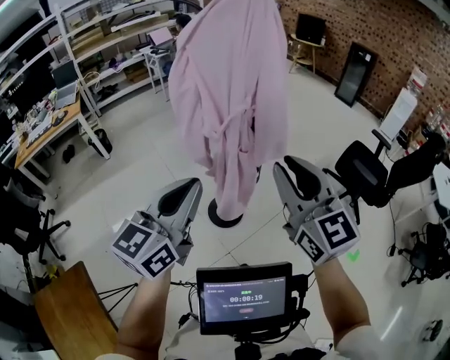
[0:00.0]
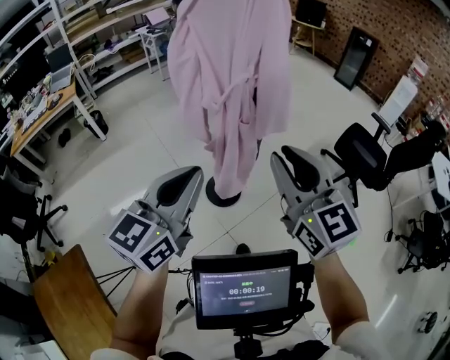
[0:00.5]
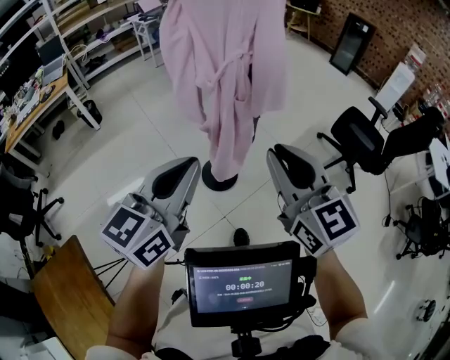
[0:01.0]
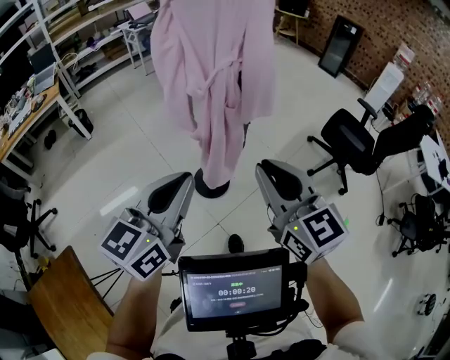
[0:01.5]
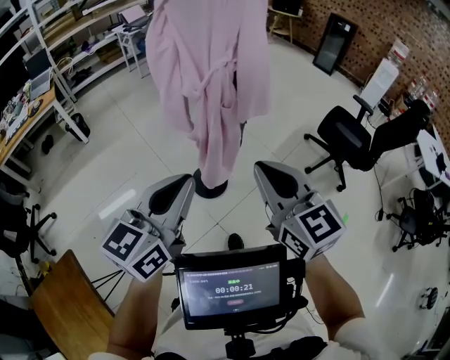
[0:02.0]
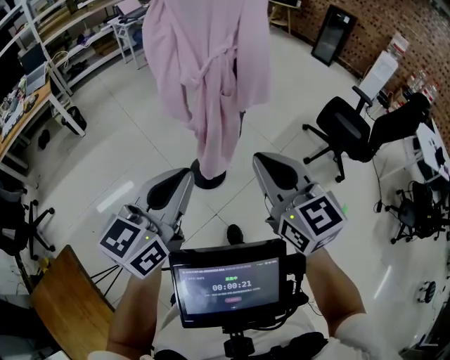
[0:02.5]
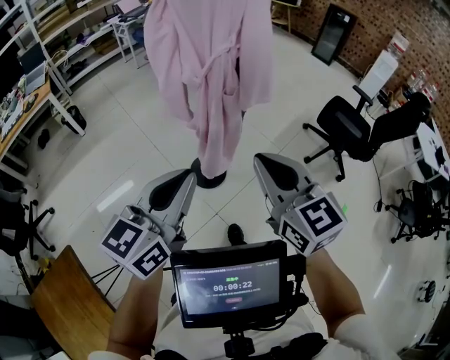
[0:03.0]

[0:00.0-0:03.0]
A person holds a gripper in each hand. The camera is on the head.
0:00.0 to 0:01.5: The right gripper goes roughly 10 cm downward and backward, while the left gripper heads backward, covering roughly 5 cm.
0:01.5 to 0:03.0: The grippers move only a little.

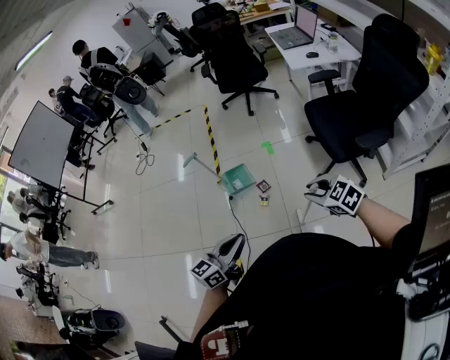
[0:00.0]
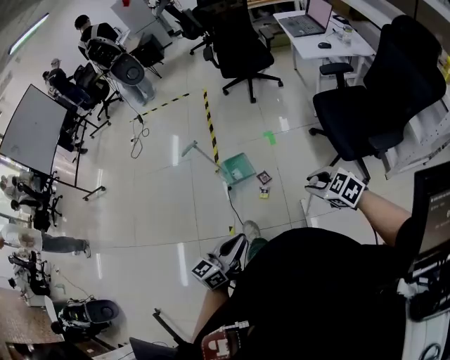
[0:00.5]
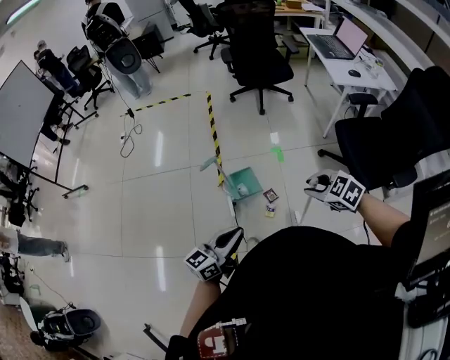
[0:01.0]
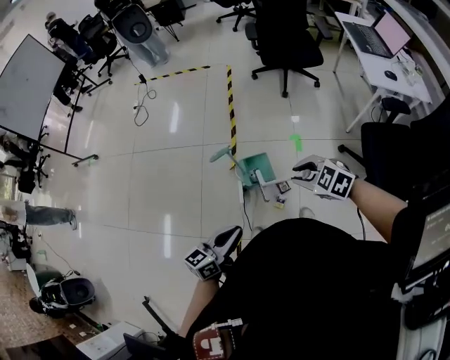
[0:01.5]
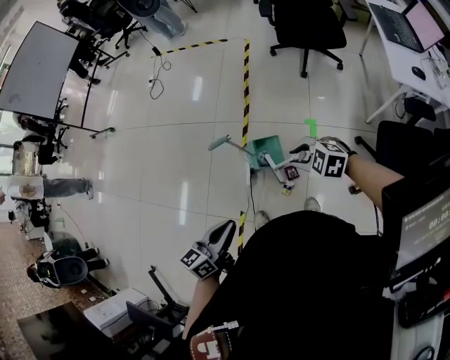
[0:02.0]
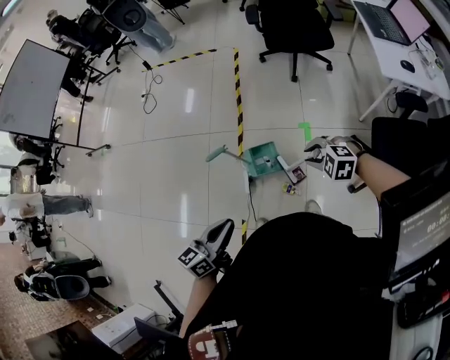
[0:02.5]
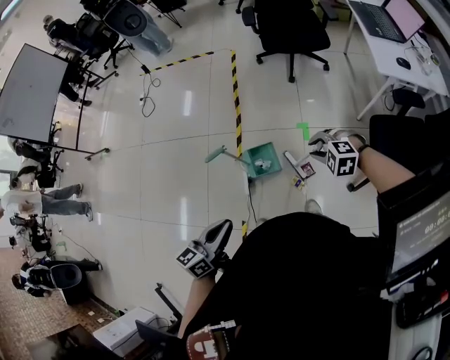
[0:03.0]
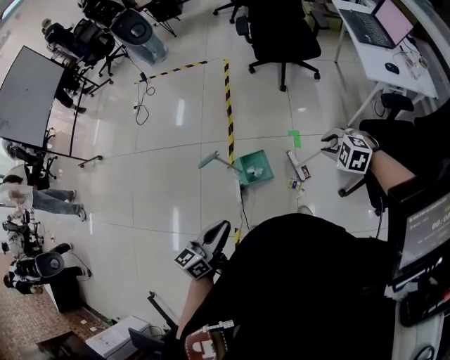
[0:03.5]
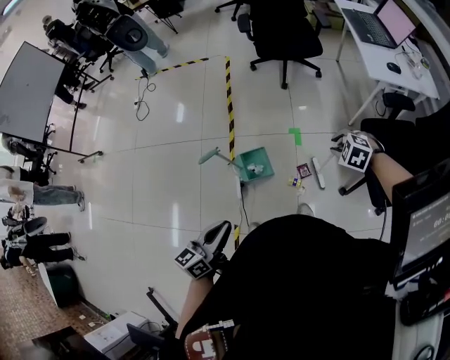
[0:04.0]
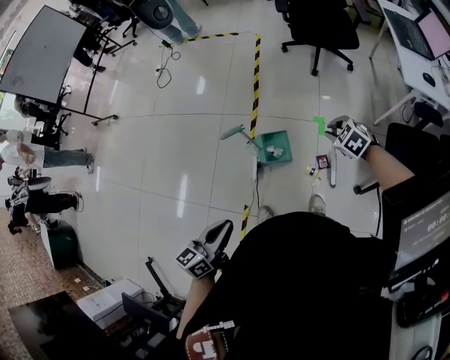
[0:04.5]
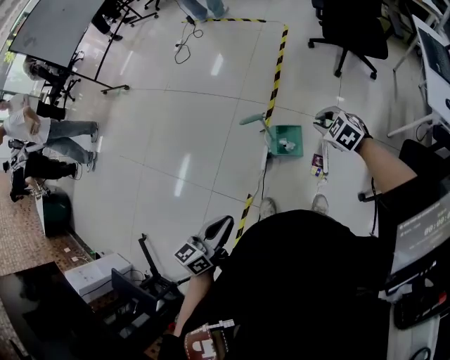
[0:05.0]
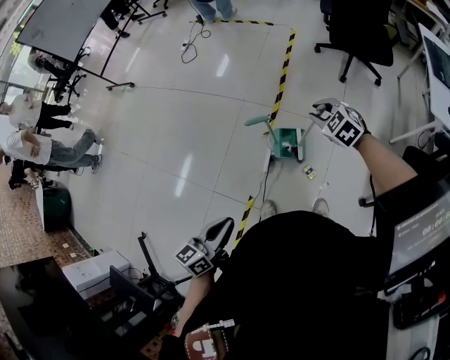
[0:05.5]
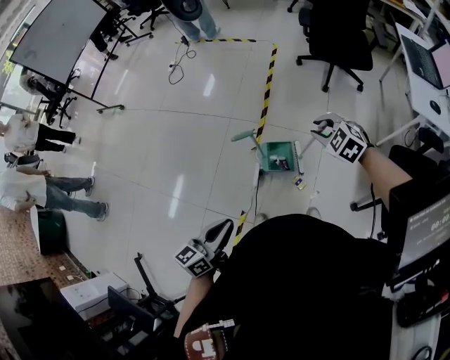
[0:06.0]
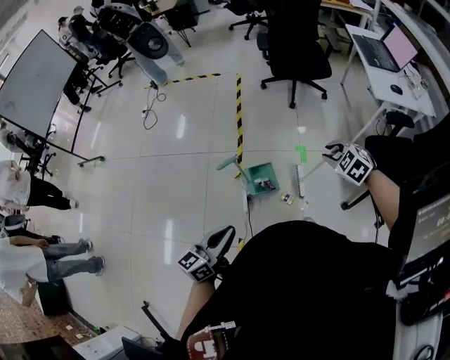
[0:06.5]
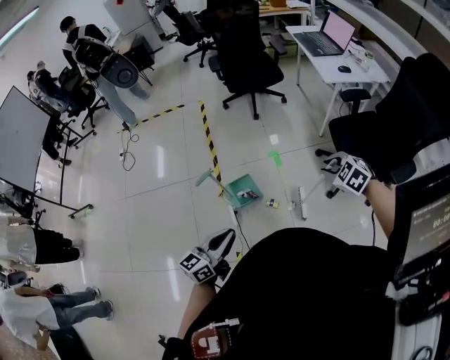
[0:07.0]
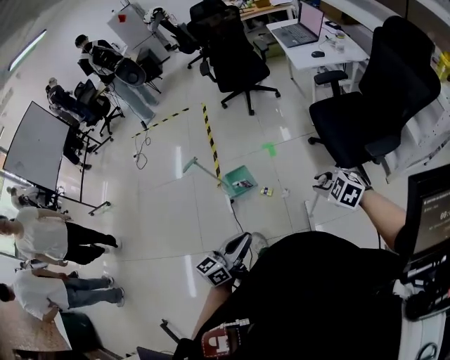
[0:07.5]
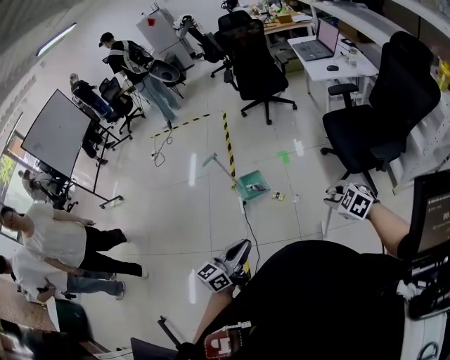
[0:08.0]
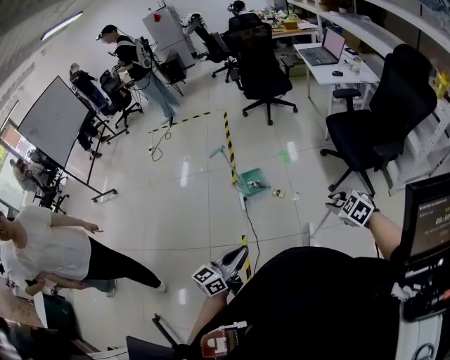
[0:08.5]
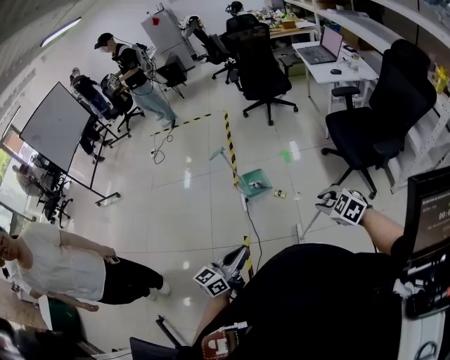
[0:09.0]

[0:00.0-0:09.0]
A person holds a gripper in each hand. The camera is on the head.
0:00.0 to 0:02.0: The left gripper moves approximately 35 cm, and changes its angle by some 30 degrees; the right gripper ends up about 50 cm from where it was, and rotates about 40 degrees.
0:02.0 to 0:04.5: The left gripper is displaced to the left by about 5 cm, while the right gripper moves to the right and forward, approximately 10 cm, and rotates some 30 degrees.
0:04.5 to 0:07.0: The left gripper swivels approximately 30 degrees. Meanwhile the right gripper shifts by some 25 cm, and rotates roughly 20 degrees.
0:07.0 to 0:09.0: The two grippers go about 35 cm backward.

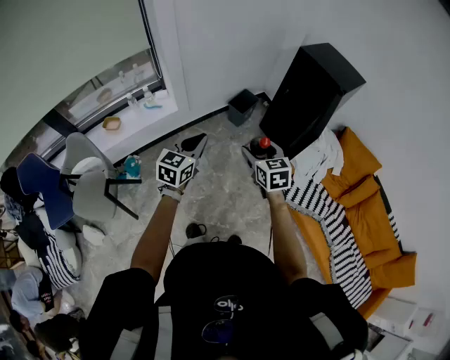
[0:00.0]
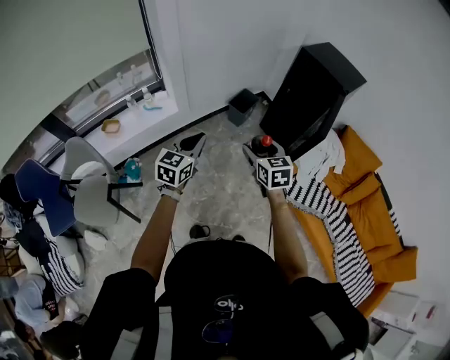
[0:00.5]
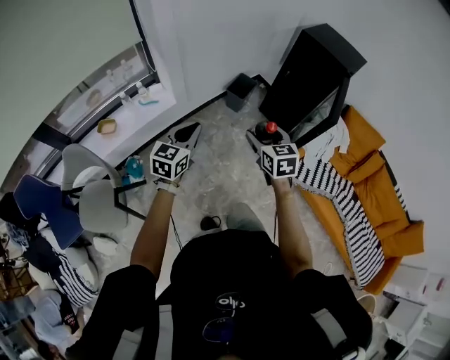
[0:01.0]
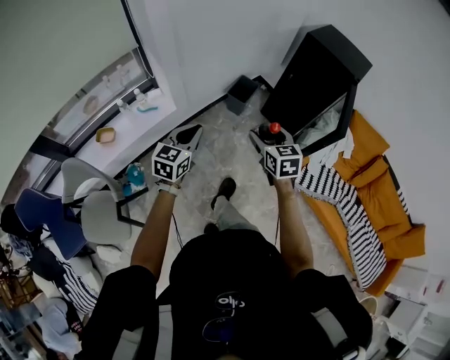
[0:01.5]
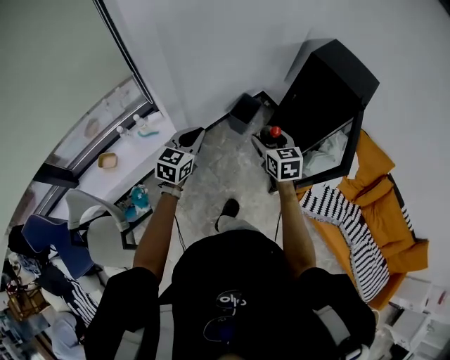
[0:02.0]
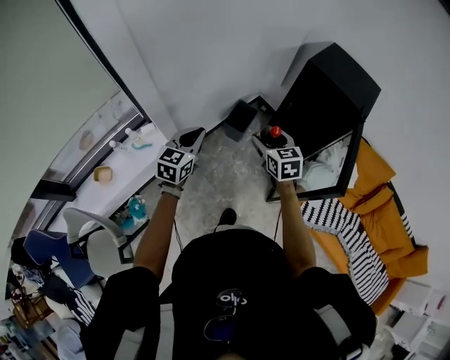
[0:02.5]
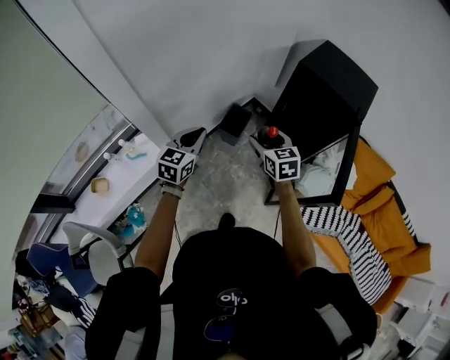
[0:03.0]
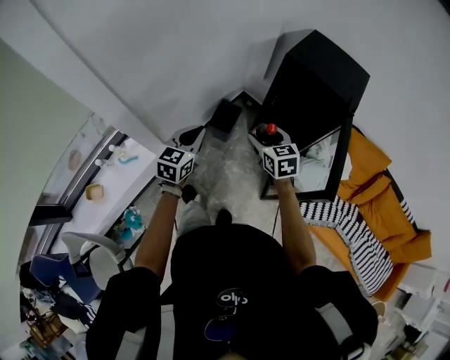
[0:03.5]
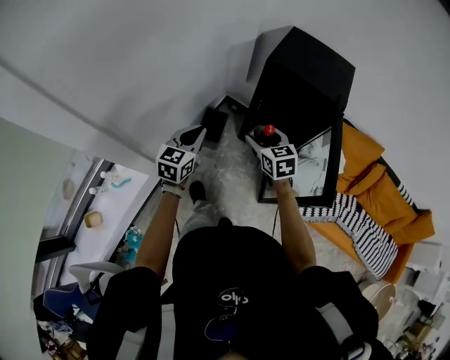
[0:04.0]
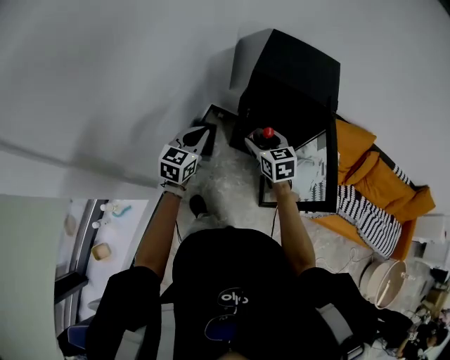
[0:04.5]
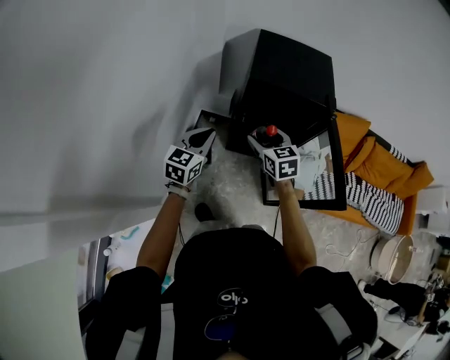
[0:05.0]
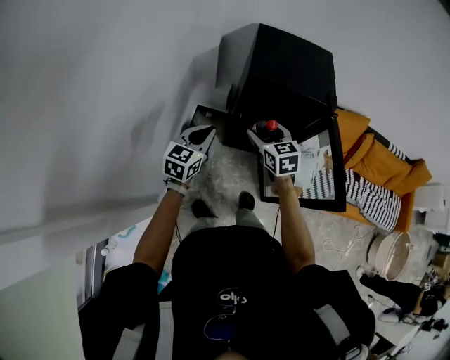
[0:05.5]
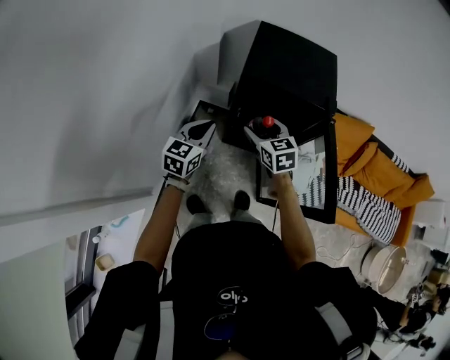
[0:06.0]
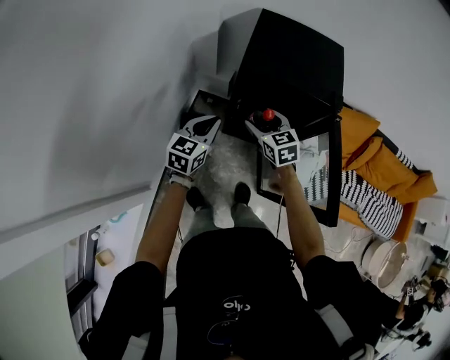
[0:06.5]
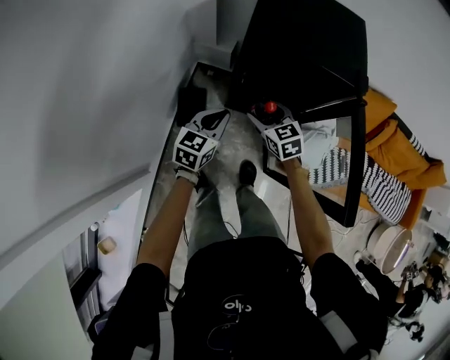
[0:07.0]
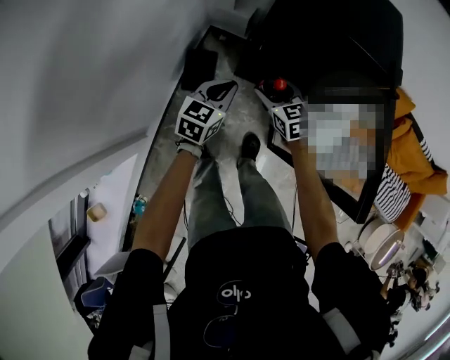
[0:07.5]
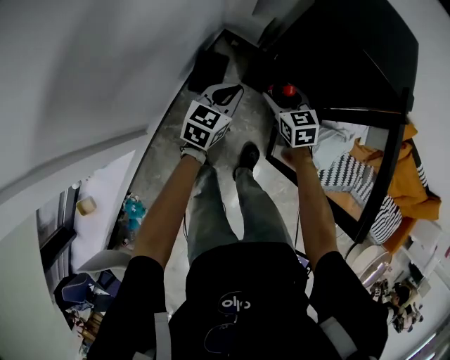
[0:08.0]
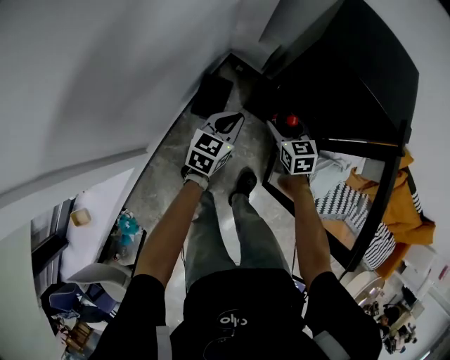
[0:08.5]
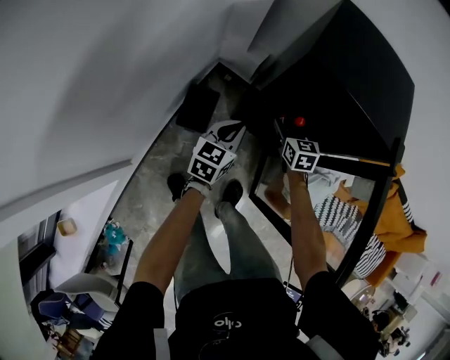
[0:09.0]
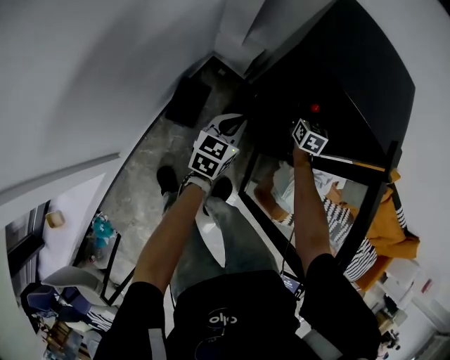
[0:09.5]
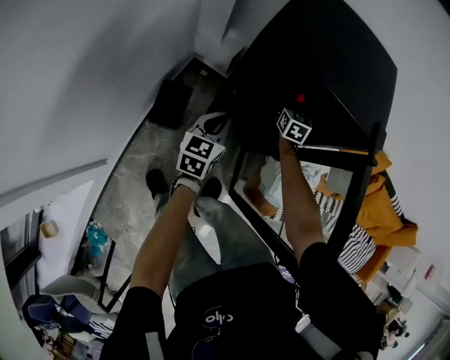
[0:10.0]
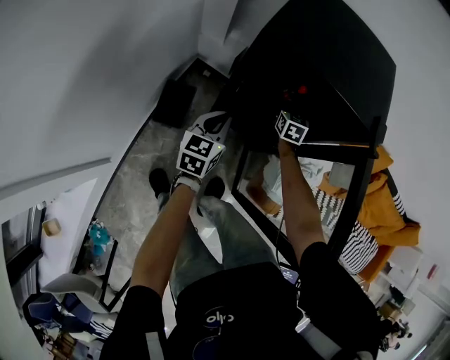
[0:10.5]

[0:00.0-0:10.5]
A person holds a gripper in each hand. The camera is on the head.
0:00.0 to 0:02.0: The right gripper travels forward by some 25 cm, while the left gripper travels forward and to the left by approximately 30 cm.
0:02.0 to 0:04.0: Both grippers move forward and to the right, some 30 cm.
0:04.0 to 0:06.5: The grippers both shift forward by roughly 20 cm.
0:06.5 to 0:08.5: Both grippers travel together downward, about 20 cm.
0:08.5 to 0:10.5: The left gripper heads to the right and forward, covering about 15 cm, while the right gripper moves forward, to the right and downward, some 25 cm, and changes its angle by approximately 30 degrees.

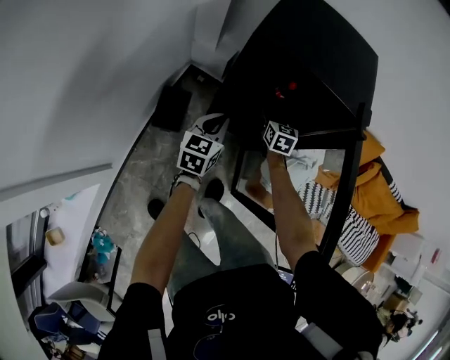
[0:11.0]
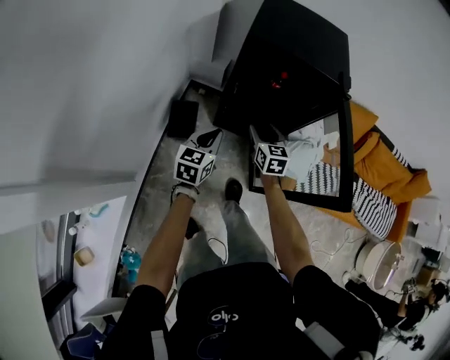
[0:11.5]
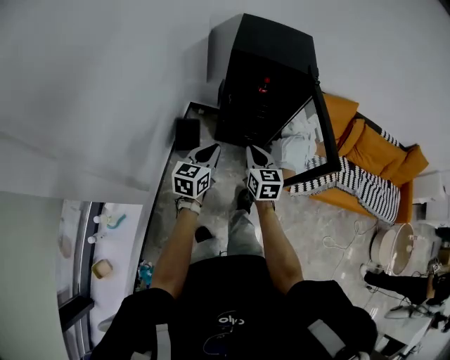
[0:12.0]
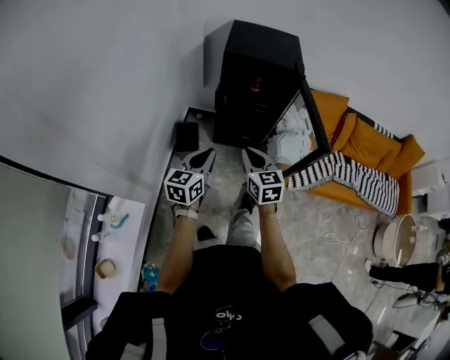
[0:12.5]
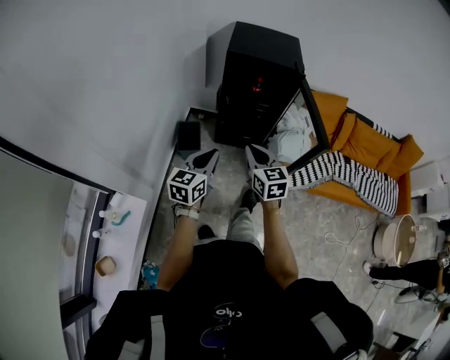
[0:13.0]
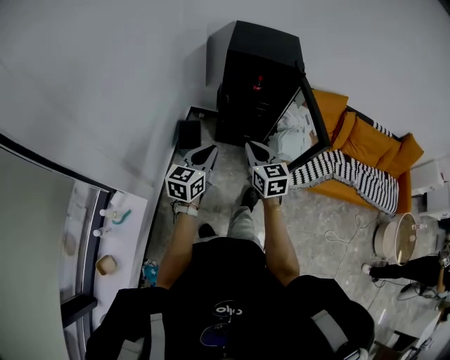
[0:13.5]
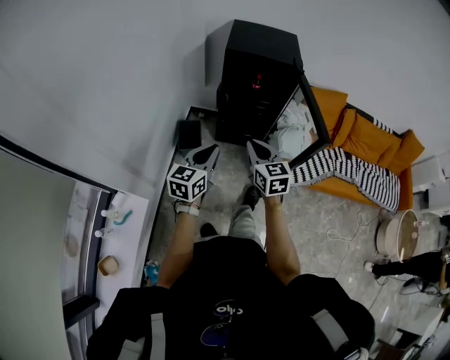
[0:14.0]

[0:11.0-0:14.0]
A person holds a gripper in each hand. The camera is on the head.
0:11.0 to 0:12.5: Both grippers move backward and upward, about 50 cm. The right gripper closes.
0:12.5 to 0:14.0: The grippers stay close to where they were, moving slightly.

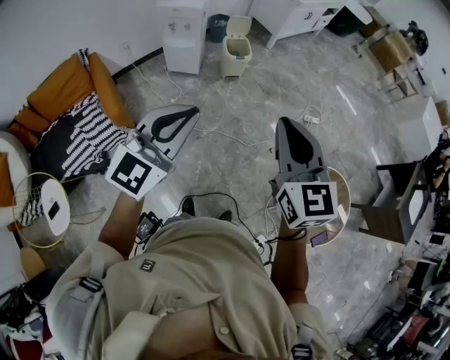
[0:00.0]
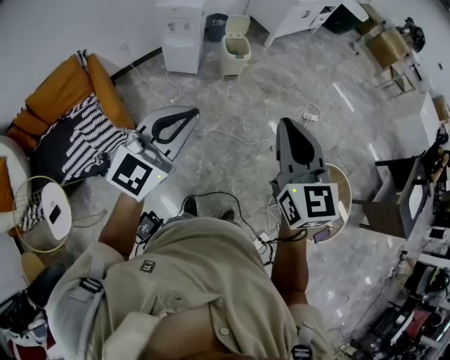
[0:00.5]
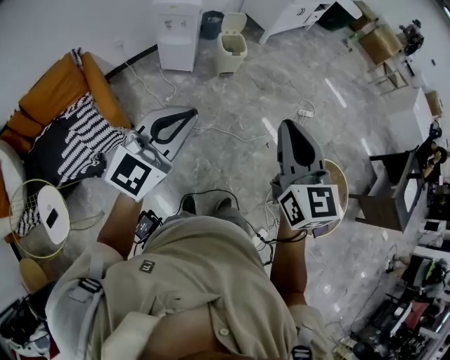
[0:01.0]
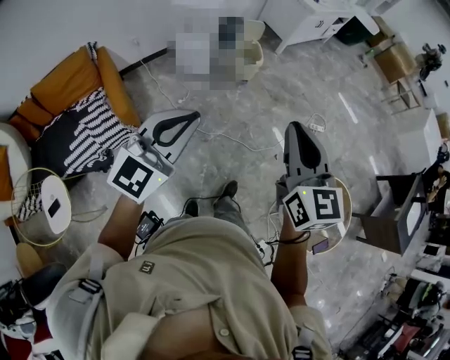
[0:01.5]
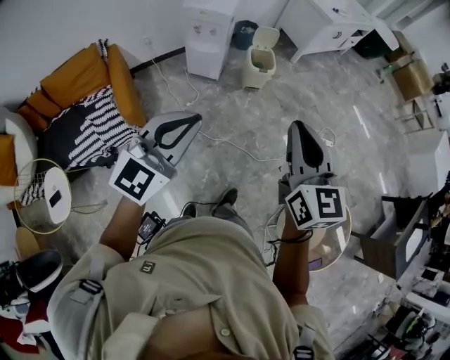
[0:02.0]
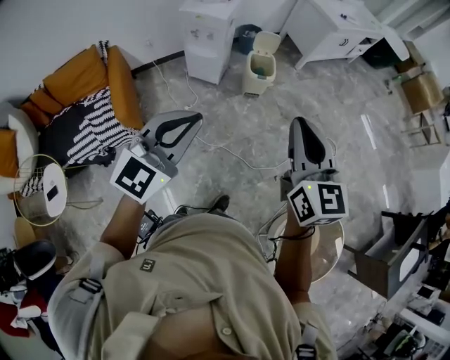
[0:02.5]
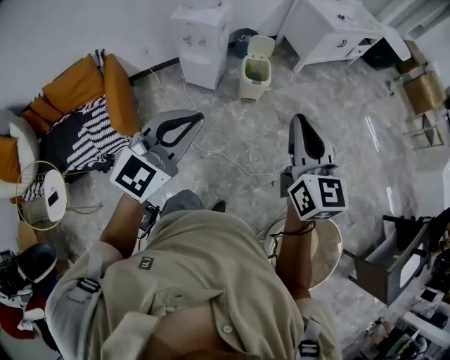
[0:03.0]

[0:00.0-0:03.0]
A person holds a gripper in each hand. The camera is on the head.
0:00.0 to 0:01.5: Both grippers travel together to the left, roughly 5 cm.
0:01.5 to 0:03.0: Both grippers move forward and to the right, roughly 25 cm.
